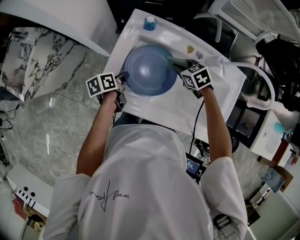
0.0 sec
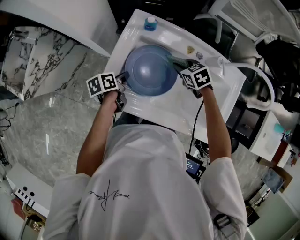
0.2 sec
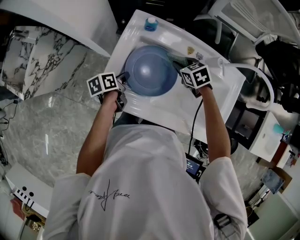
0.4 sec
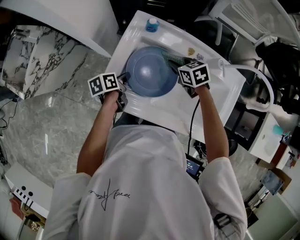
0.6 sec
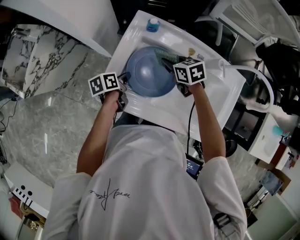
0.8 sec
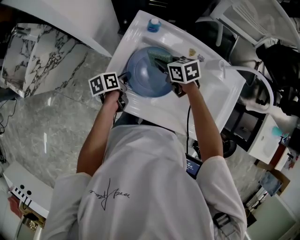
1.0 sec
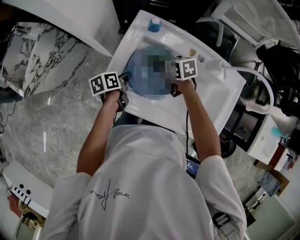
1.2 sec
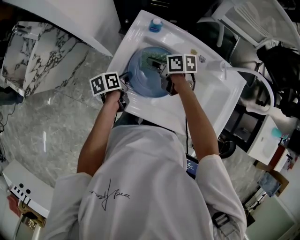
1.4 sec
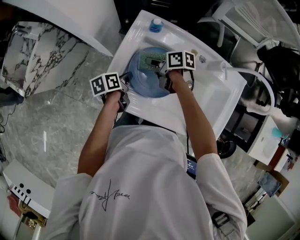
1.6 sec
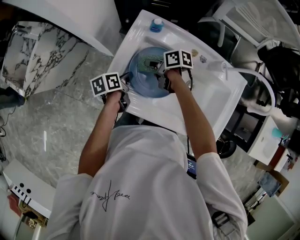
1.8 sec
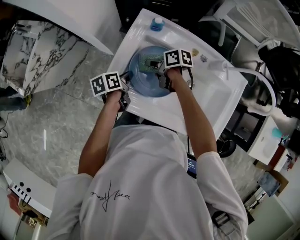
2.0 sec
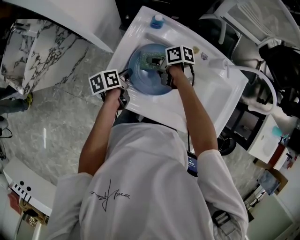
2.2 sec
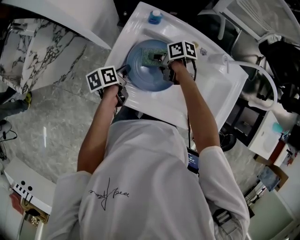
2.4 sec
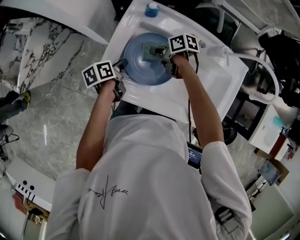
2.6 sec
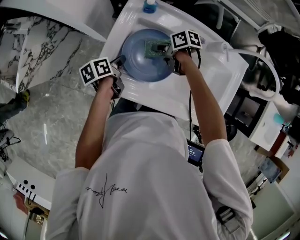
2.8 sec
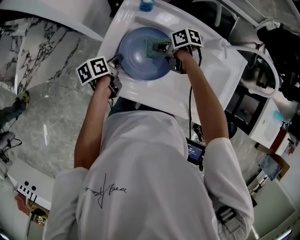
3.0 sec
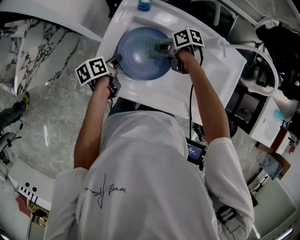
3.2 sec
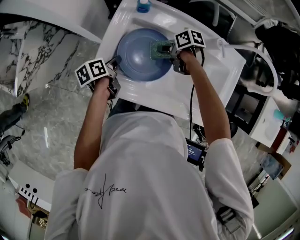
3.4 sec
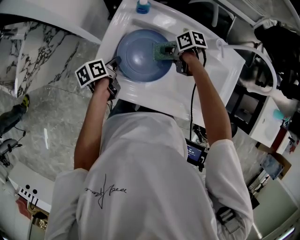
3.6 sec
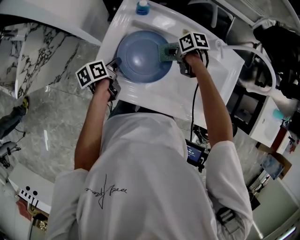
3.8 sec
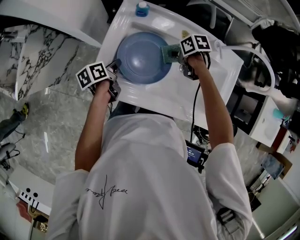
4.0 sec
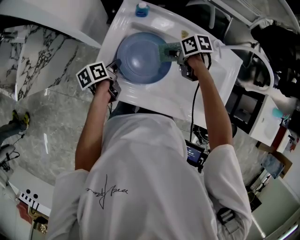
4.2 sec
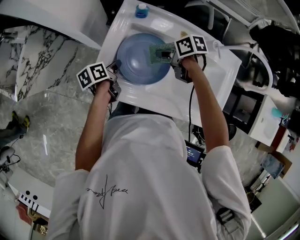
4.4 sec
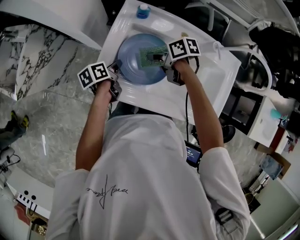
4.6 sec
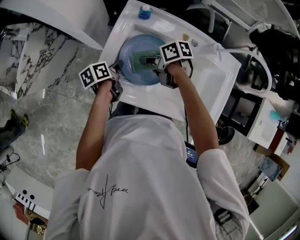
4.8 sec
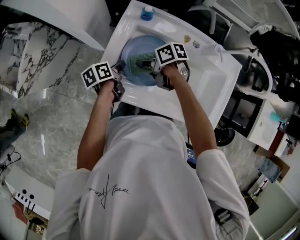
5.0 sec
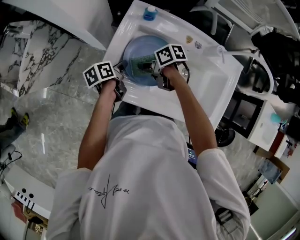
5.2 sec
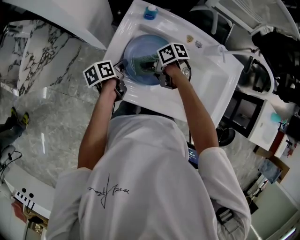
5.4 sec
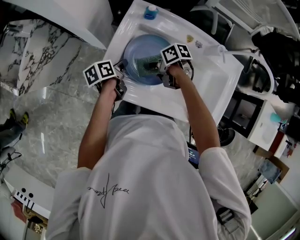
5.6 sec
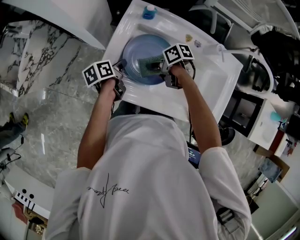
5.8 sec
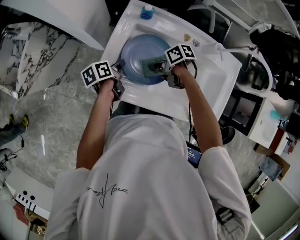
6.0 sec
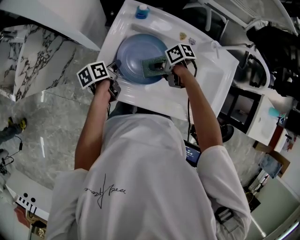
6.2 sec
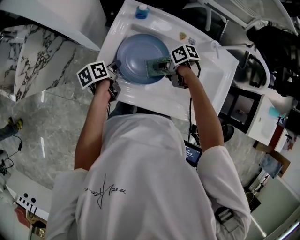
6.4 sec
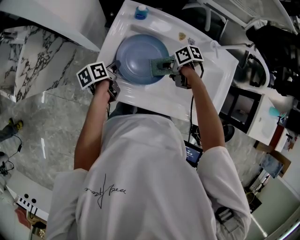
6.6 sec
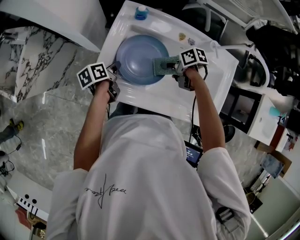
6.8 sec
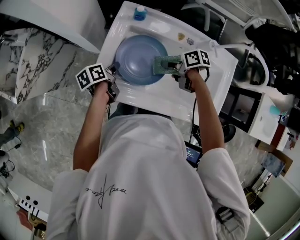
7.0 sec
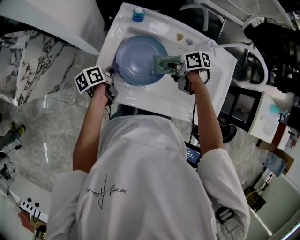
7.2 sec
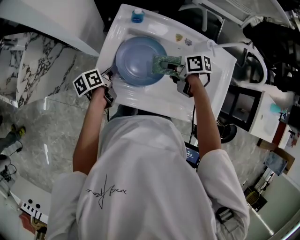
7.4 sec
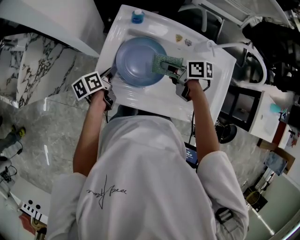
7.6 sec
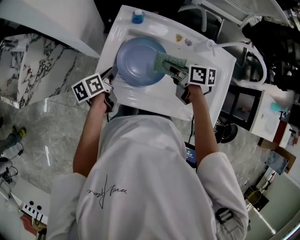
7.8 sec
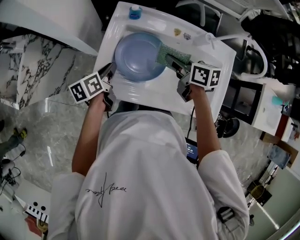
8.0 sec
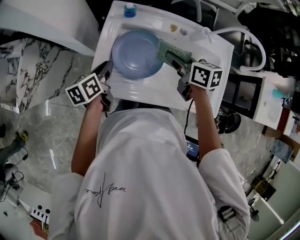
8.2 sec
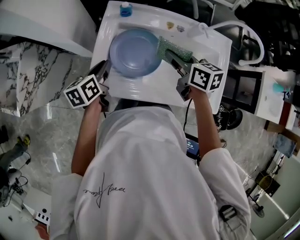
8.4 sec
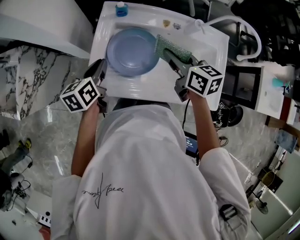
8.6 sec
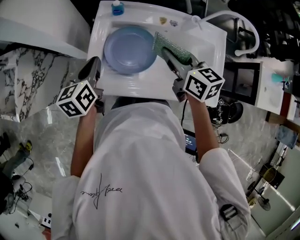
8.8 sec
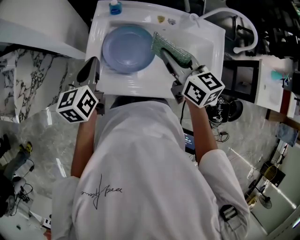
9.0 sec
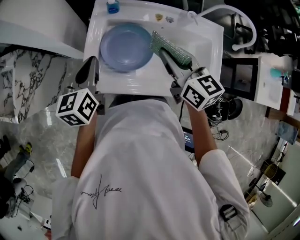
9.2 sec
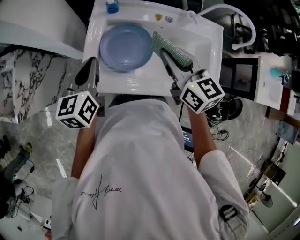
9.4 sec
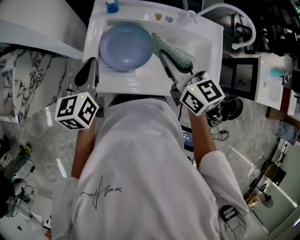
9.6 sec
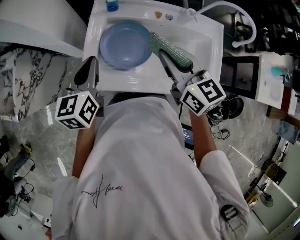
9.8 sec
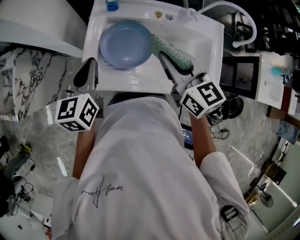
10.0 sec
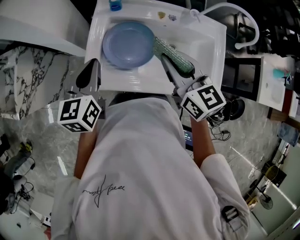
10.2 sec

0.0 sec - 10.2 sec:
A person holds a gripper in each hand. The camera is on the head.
0.0 sec - 1.4 sec: The right gripper heads to the left, covering approximately 15 cm, and rotates roughly 40 degrees.
1.4 sec - 3.0 sec: The right gripper heads to the right and downward, covering some 10 cm.
3.0 sec - 4.4 sec: The right gripper travels upward by roughly 5 cm, and travels to the right and back again, roughly 10 cm each way.
4.4 sec - 5.8 sec: The right gripper ends up about 10 cm from where it was.
5.8 sec - 7.2 sec: The right gripper ends up about 10 cm from where it was.
7.2 sec - 8.8 sec: The two grippers go approximately 15 cm upward. The right gripper swivels approximately 50 degrees. Meanwhile the left gripper changes its angle by some 40 degrees.
8.8 sec - 10.2 sec: The right gripper travels backward by roughly 5 cm, while the left gripper travels upward by some 5 cm.

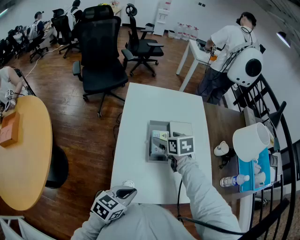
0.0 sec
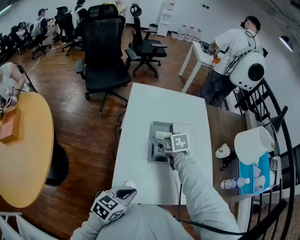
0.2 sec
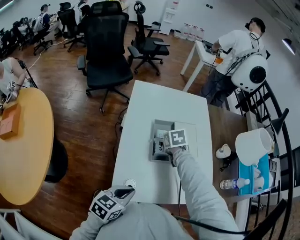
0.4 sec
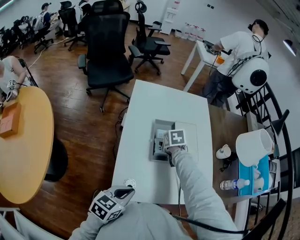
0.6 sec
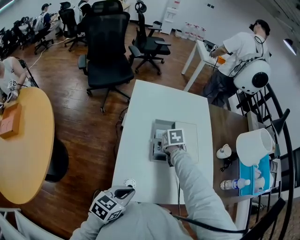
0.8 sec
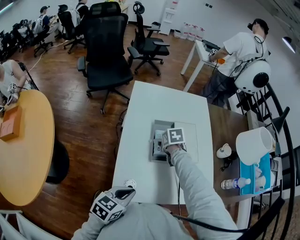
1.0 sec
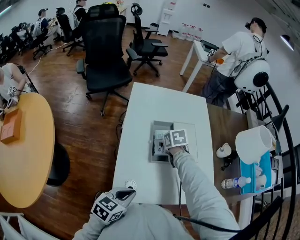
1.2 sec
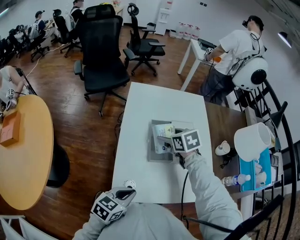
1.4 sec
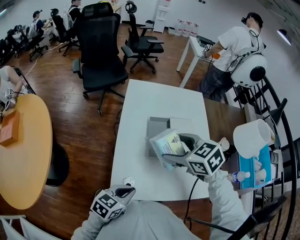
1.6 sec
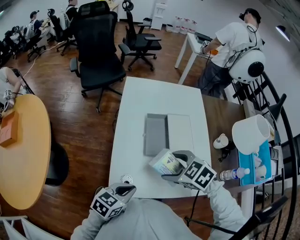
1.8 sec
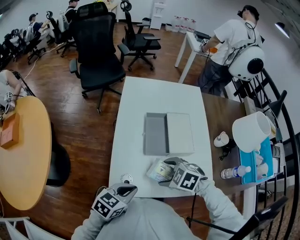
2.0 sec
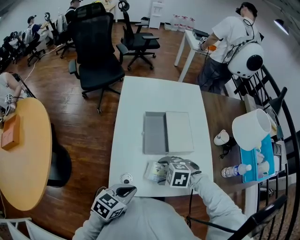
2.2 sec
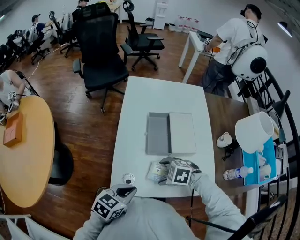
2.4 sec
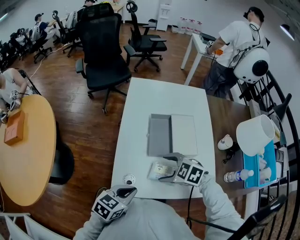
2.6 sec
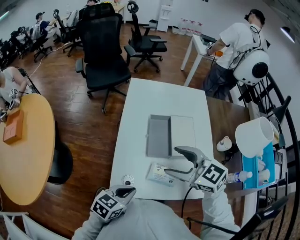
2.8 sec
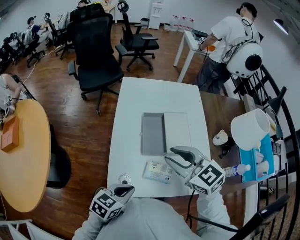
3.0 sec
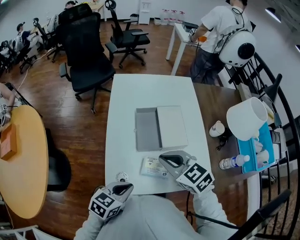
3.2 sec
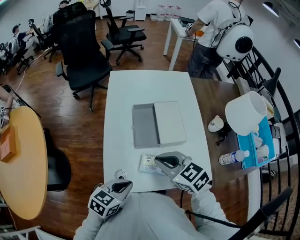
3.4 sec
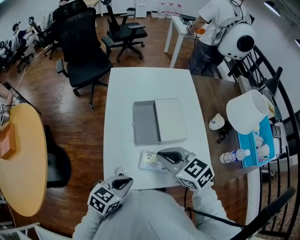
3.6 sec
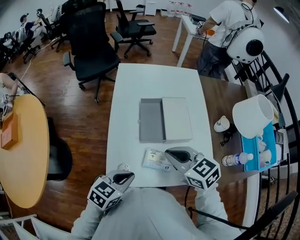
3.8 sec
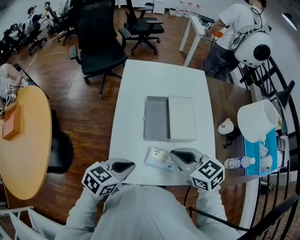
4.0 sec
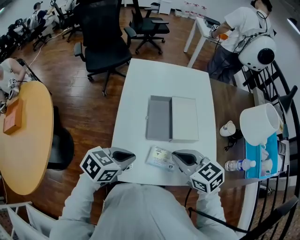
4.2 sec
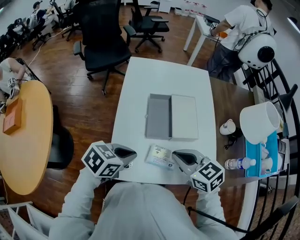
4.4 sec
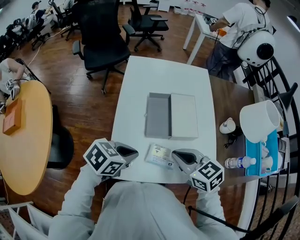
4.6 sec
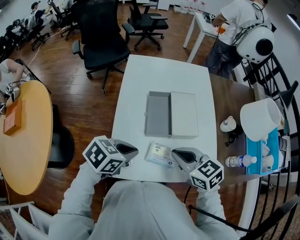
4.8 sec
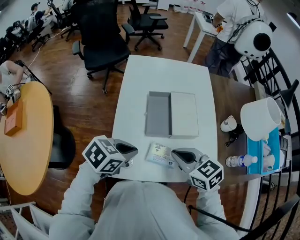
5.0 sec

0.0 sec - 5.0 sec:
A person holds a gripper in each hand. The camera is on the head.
0.0 sec - 1.6 sec: The right gripper shifts roughly 15 cm upward and backward, and turns by about 30 degrees.
1.6 sec - 3.4 sec: The right gripper goes up and down, about 20 cm each way, reversing 2 times, and closes.
3.4 sec - 5.0 sec: The left gripper goes roughly 10 cm forward.

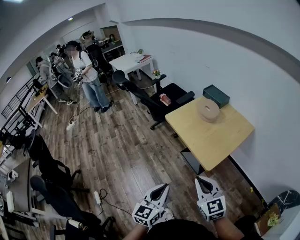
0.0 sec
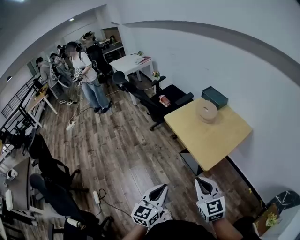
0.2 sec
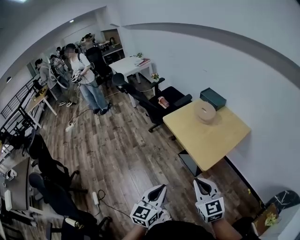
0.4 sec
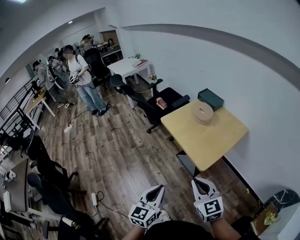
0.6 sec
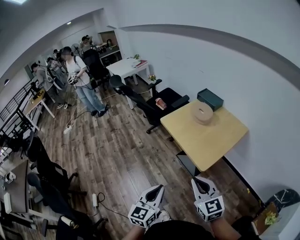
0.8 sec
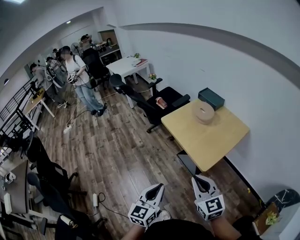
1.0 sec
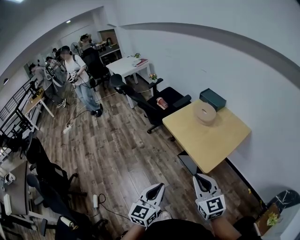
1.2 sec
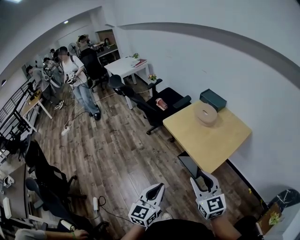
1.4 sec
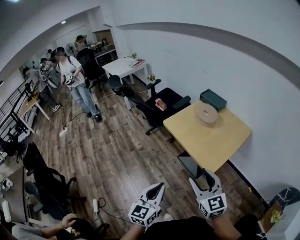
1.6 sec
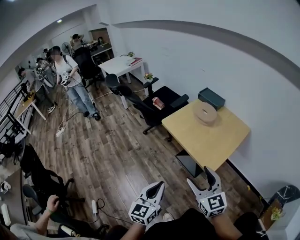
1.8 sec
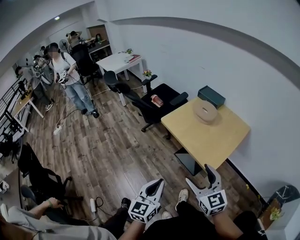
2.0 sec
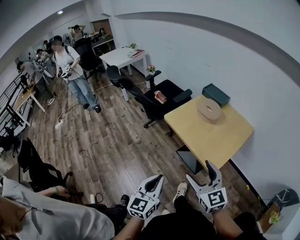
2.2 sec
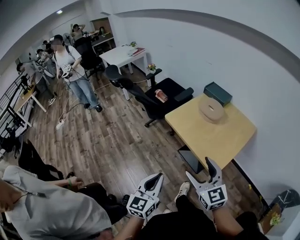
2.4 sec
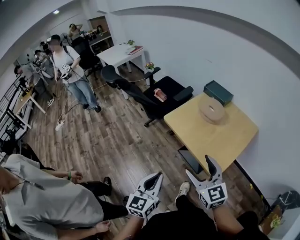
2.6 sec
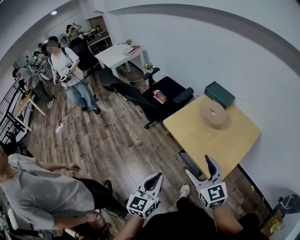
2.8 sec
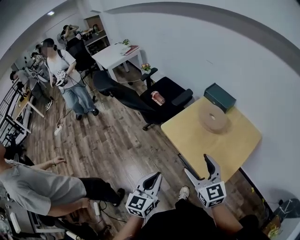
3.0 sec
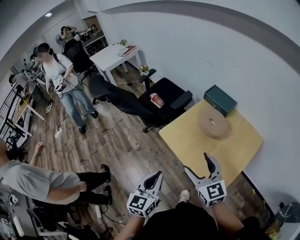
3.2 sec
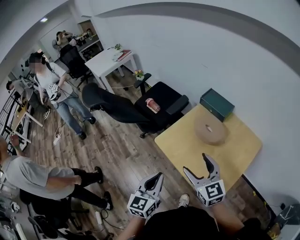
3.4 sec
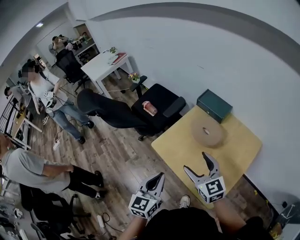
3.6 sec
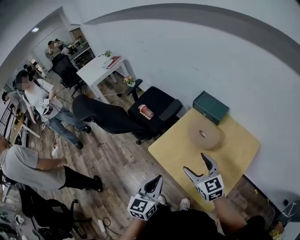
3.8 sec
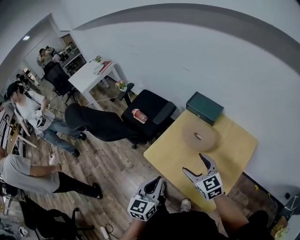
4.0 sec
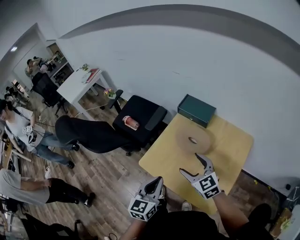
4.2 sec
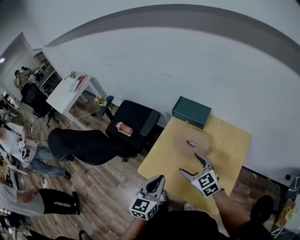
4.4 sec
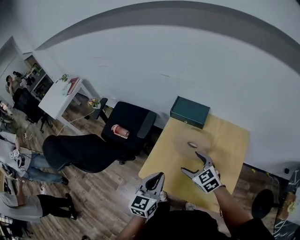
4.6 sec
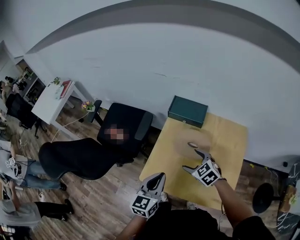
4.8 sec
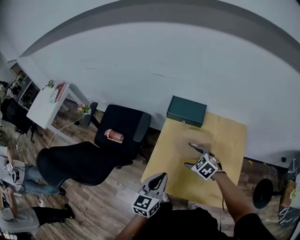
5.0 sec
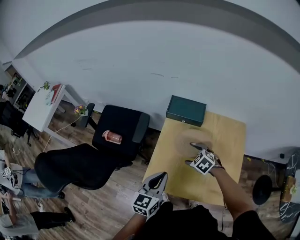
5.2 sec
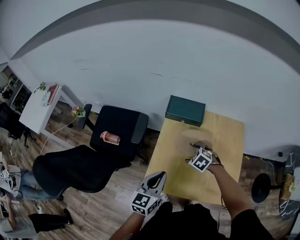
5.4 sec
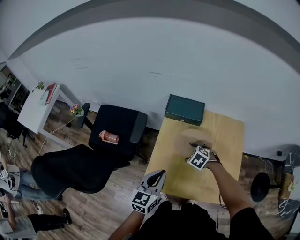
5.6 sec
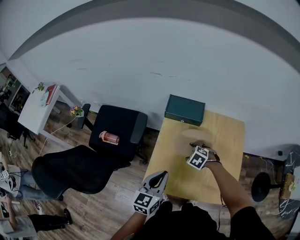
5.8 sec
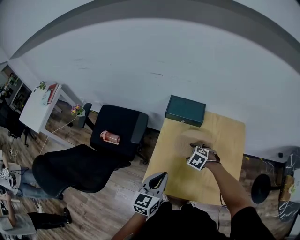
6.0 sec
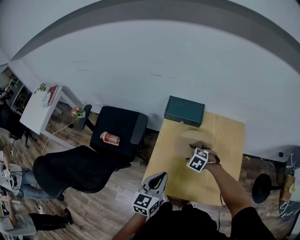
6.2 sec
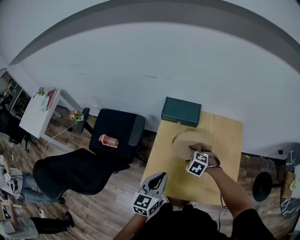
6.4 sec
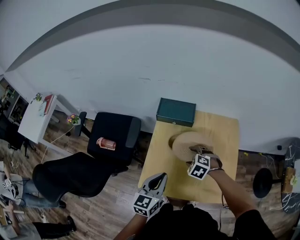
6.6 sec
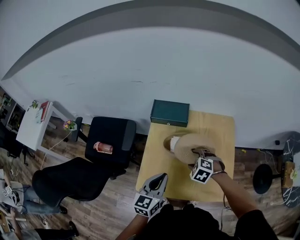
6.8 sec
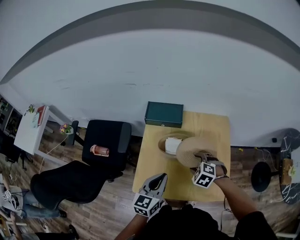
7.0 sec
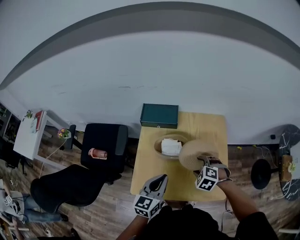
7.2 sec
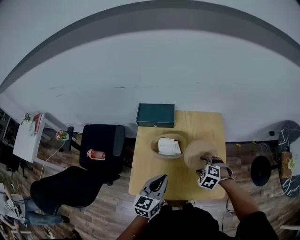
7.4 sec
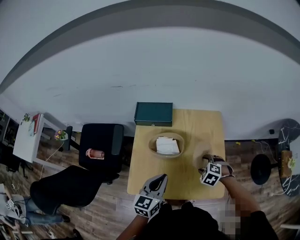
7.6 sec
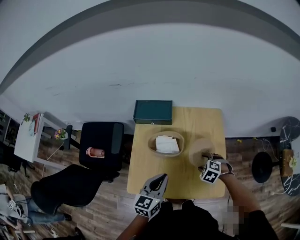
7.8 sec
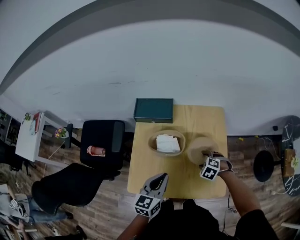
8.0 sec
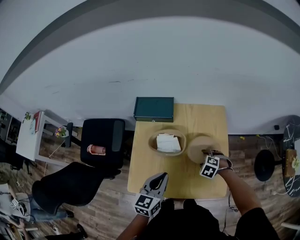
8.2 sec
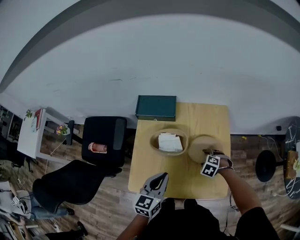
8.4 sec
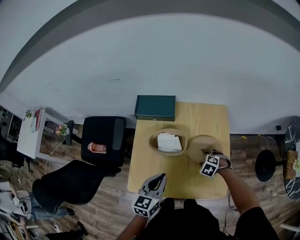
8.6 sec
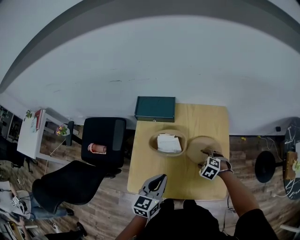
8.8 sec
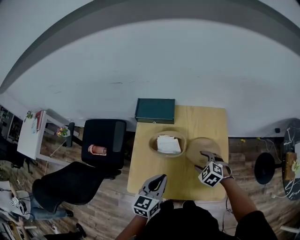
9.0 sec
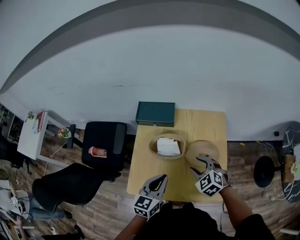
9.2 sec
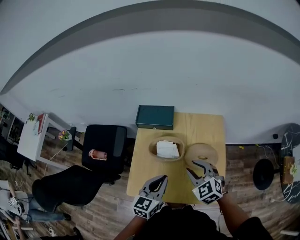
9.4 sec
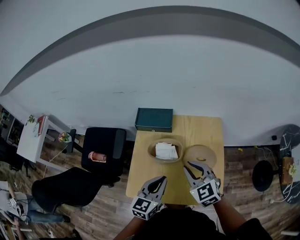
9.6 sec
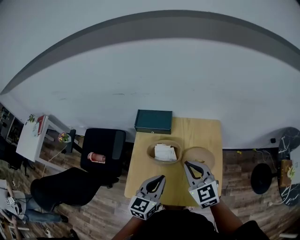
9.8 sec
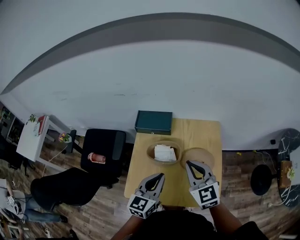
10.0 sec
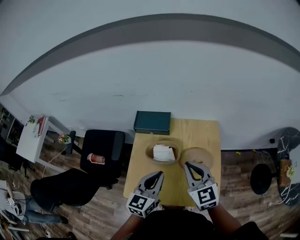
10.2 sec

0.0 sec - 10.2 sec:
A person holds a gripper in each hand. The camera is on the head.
0.0 sec - 1.4 sec: There are only small adjustments of the grippers.
1.4 sec - 3.0 sec: The grippers both shift forward by about 25 cm. The right gripper opens.
3.0 sec - 4.4 sec: Both grippers move forward, some 25 cm. The left gripper turns by approximately 20 degrees.
4.4 sec - 5.8 sec: The right gripper is displaced downward and forward by approximately 20 cm, and tilts its fingers roughly 40 degrees downward; the left gripper shifts about 10 cm forward and to the left, and rotates roughly 20 degrees.
5.8 sec - 7.2 sec: The left gripper moves to the right, some 10 cm. Meanwhile the right gripper is displaced to the right, backward and upward by approximately 20 cm.
7.2 sec - 8.8 sec: The right gripper goes about 10 cm downward.
8.8 sec - 10.2 sec: The left gripper goes some 10 cm upward, while the right gripper travels upward by roughly 30 cm, tips its fingers upward by approximately 50 degrees, and closes.
